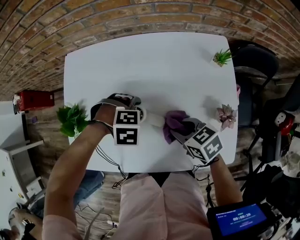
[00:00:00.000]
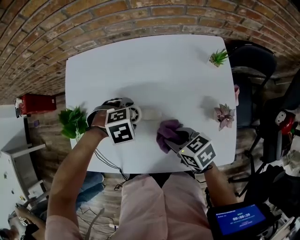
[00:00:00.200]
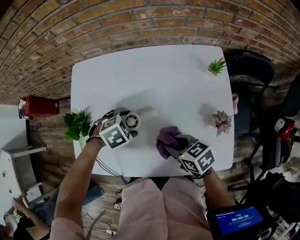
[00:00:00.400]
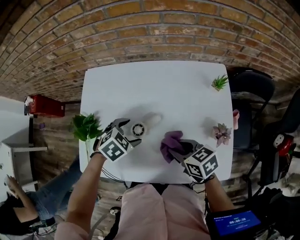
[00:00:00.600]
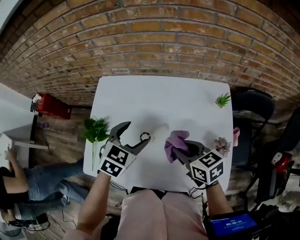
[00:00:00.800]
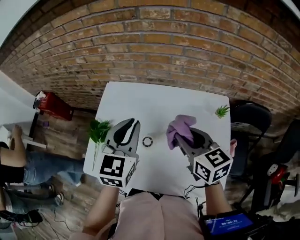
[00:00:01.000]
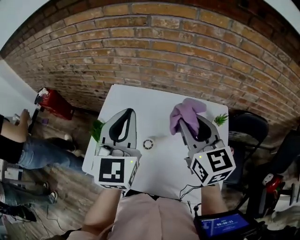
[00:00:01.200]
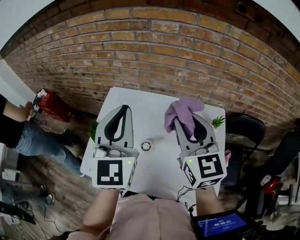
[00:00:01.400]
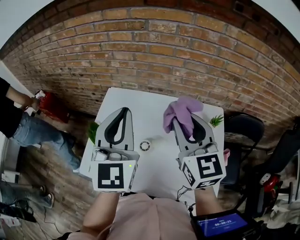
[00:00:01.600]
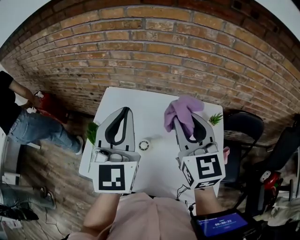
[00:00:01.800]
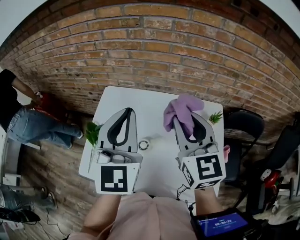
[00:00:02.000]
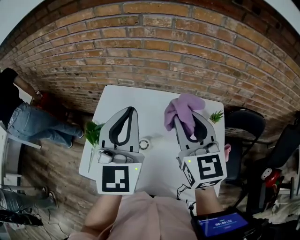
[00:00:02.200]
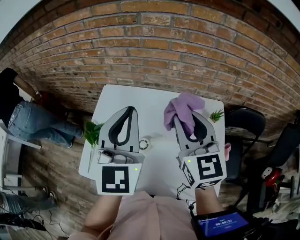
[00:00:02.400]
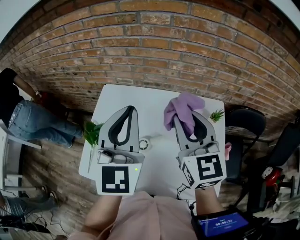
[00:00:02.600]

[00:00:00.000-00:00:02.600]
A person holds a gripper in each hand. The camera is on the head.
00:00:00.000 to 00:00:01.200: Both grippers travel together upward, approximately 35 cm. The right gripper points its fingers about 40 degrees further upward, while the left gripper points its fingers about 80 degrees further upward, and closes up.
00:00:01.200 to 00:00:02.600: The grippers stay close to where they were, moving slightly.

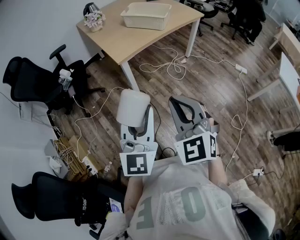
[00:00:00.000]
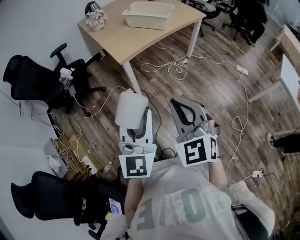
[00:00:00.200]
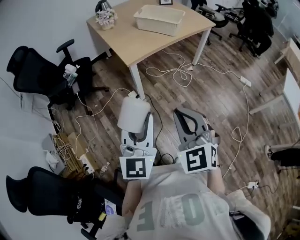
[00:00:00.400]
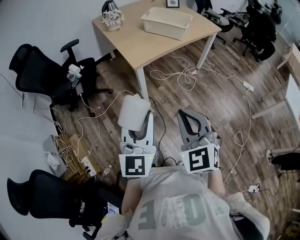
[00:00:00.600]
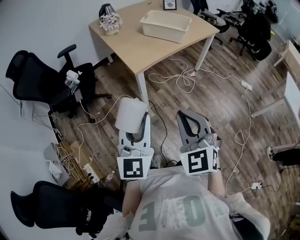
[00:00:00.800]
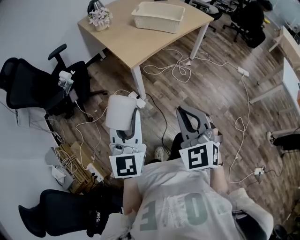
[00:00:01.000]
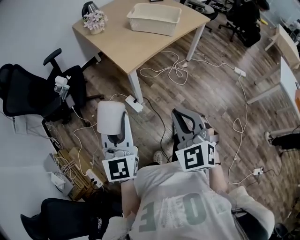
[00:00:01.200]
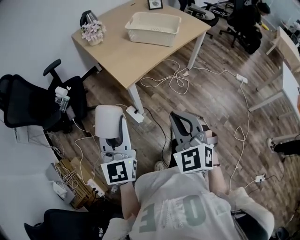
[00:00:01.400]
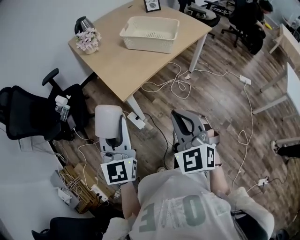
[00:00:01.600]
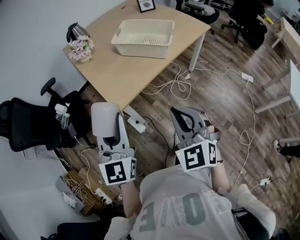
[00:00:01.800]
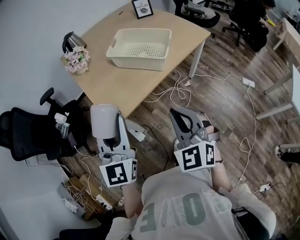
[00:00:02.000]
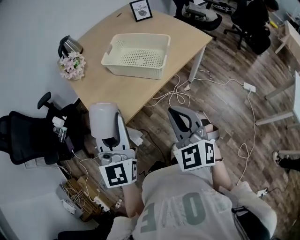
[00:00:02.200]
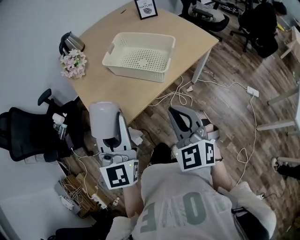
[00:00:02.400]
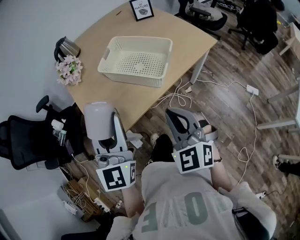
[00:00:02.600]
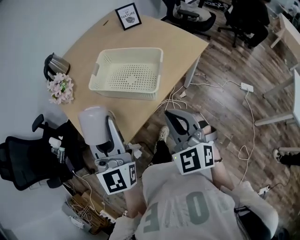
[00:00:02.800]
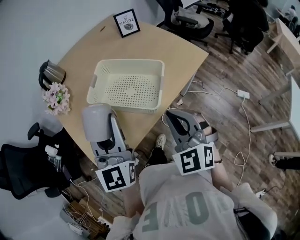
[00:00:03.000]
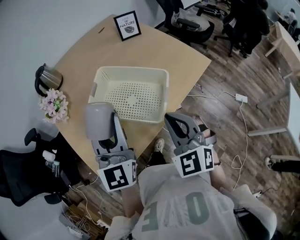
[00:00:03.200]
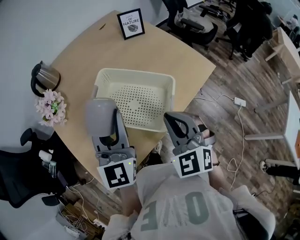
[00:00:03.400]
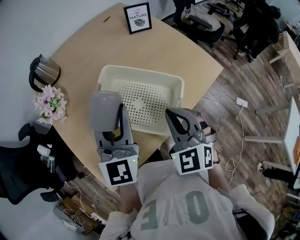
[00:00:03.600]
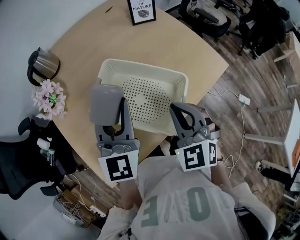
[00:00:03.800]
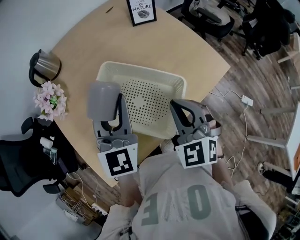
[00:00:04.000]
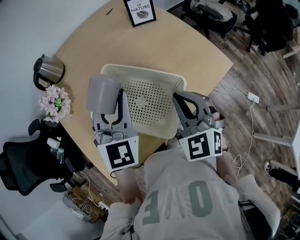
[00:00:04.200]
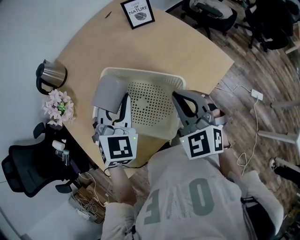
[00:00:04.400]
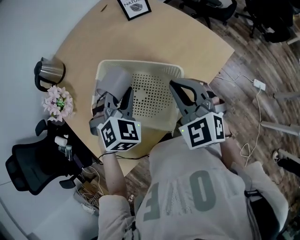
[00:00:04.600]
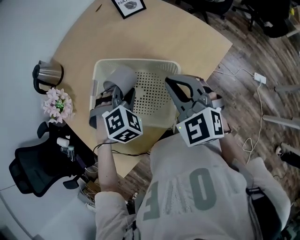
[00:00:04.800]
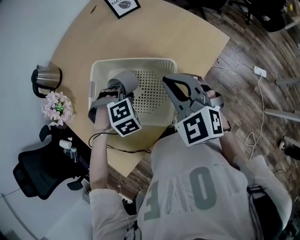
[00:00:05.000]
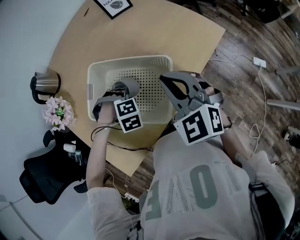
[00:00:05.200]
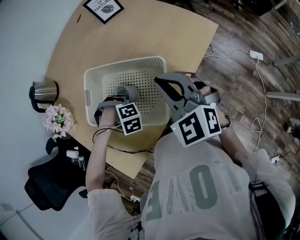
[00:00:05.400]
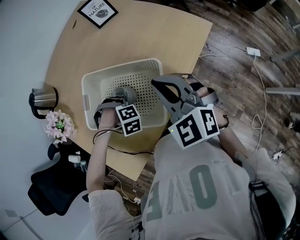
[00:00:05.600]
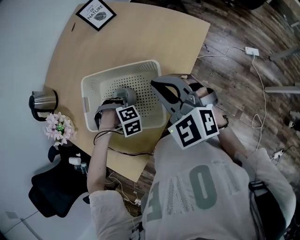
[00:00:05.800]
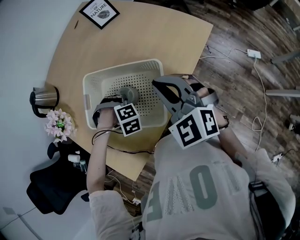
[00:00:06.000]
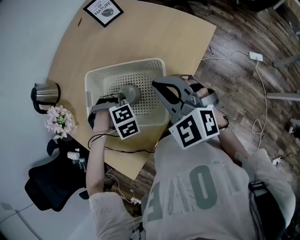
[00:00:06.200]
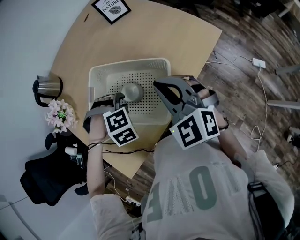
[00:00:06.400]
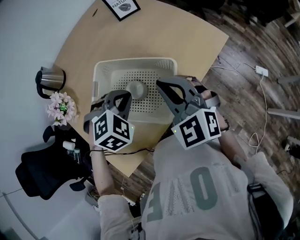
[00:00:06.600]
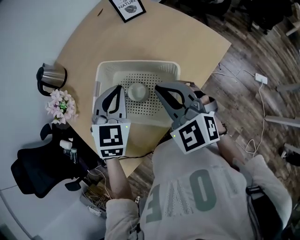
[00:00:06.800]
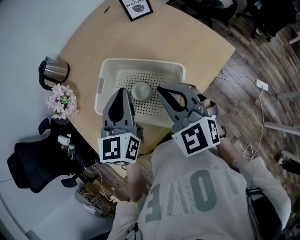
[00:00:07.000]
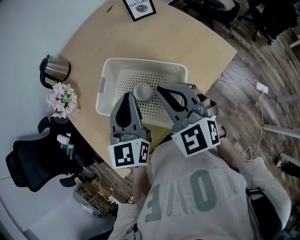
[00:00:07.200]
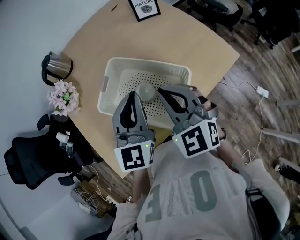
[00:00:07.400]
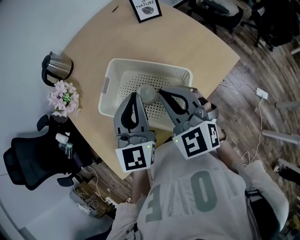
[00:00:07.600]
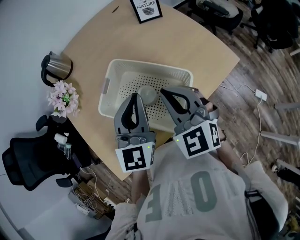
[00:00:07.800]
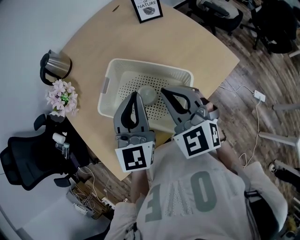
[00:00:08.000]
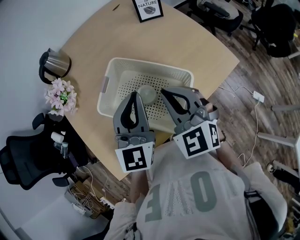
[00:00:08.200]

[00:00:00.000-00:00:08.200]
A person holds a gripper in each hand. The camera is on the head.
00:00:00.000 to 00:00:01.600: The left gripper travels forward and to the left by about 30 cm. The right gripper shifts approximately 25 cm forward.
00:00:01.600 to 00:00:03.200: The pair of grippers is taken forward, about 50 cm.
00:00:03.200 to 00:00:05.000: The right gripper is displaced forward by about 15 cm. The left gripper shifts roughly 25 cm downward and forward, and tilts its fingers about 70 degrees downward.
00:00:05.000 to 00:00:06.600: The left gripper is displaced upward by some 10 cm, and swivels about 20 degrees.
00:00:06.600 to 00:00:08.200: The right gripper shifts about 5 cm to the left. The left gripper is displaced upward by about 10 cm, and points its fingers approximately 60 degrees further upward.

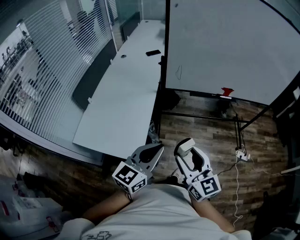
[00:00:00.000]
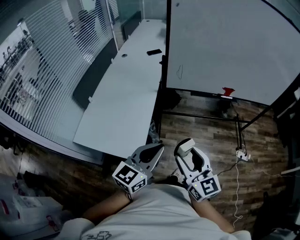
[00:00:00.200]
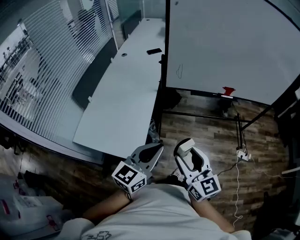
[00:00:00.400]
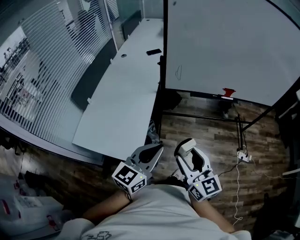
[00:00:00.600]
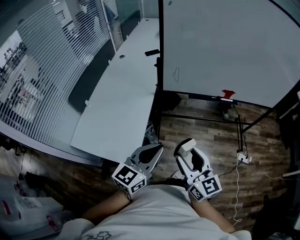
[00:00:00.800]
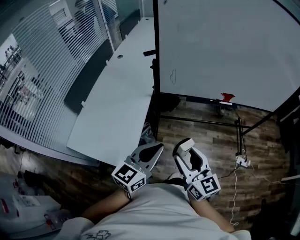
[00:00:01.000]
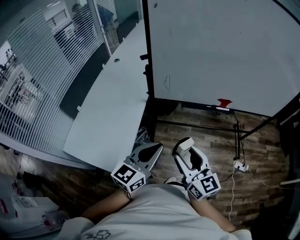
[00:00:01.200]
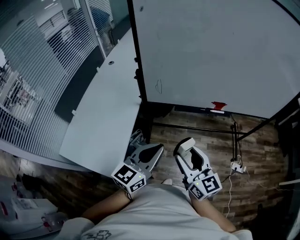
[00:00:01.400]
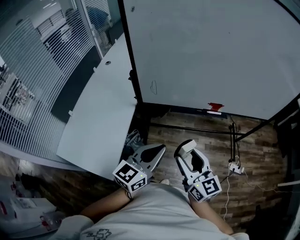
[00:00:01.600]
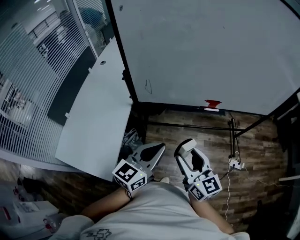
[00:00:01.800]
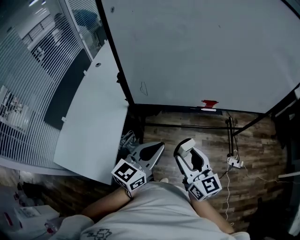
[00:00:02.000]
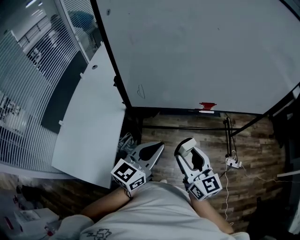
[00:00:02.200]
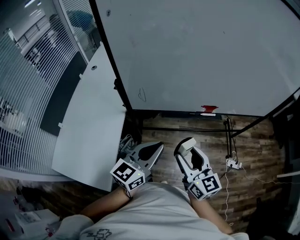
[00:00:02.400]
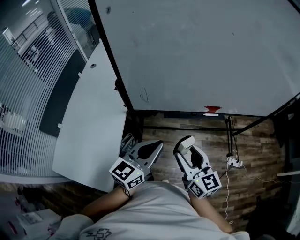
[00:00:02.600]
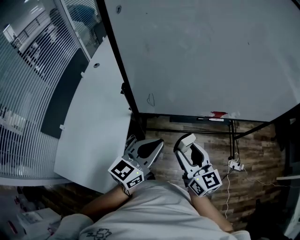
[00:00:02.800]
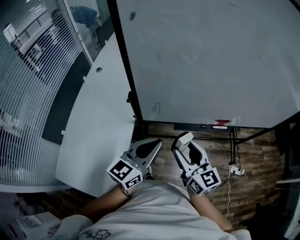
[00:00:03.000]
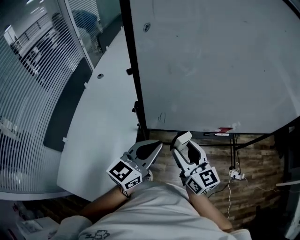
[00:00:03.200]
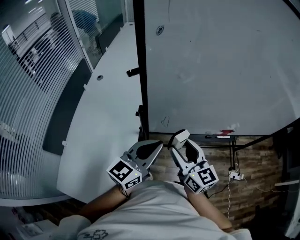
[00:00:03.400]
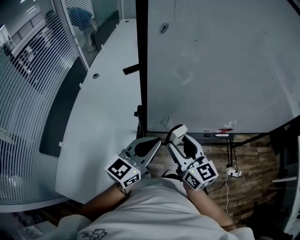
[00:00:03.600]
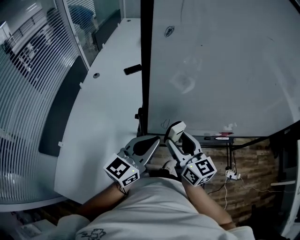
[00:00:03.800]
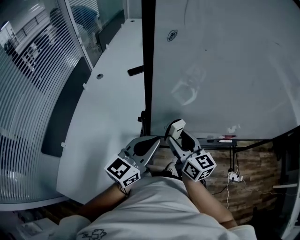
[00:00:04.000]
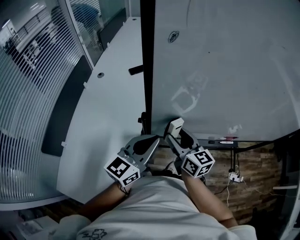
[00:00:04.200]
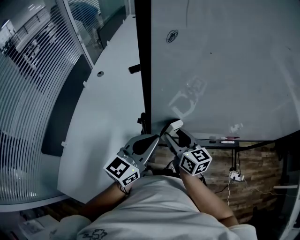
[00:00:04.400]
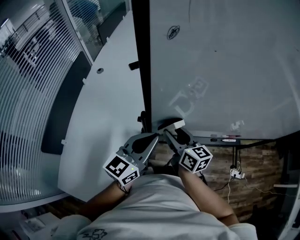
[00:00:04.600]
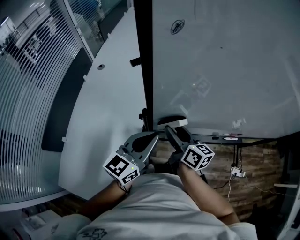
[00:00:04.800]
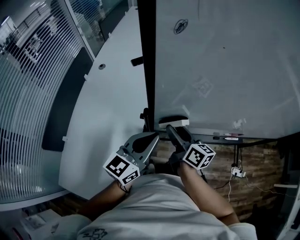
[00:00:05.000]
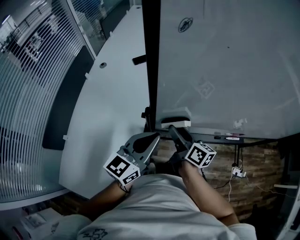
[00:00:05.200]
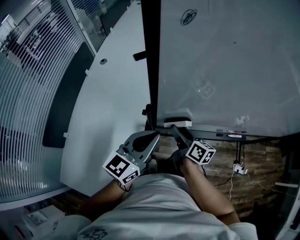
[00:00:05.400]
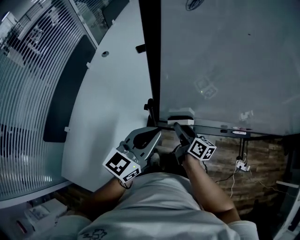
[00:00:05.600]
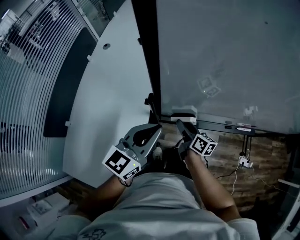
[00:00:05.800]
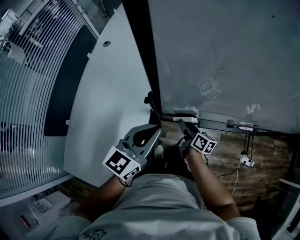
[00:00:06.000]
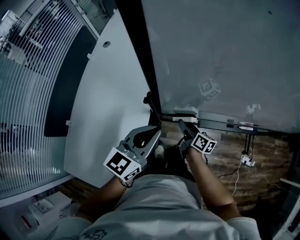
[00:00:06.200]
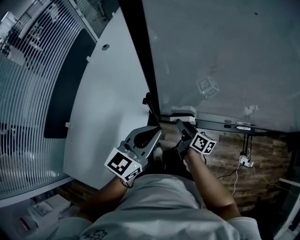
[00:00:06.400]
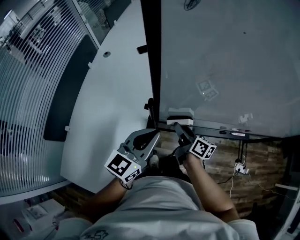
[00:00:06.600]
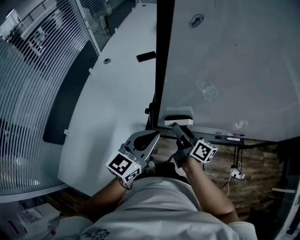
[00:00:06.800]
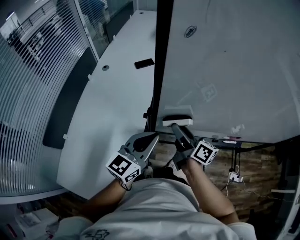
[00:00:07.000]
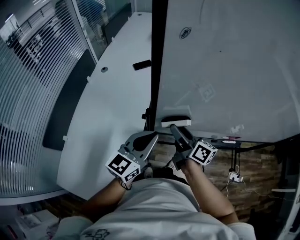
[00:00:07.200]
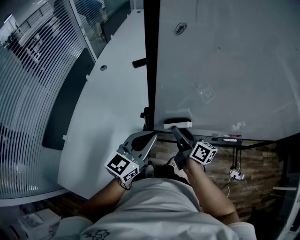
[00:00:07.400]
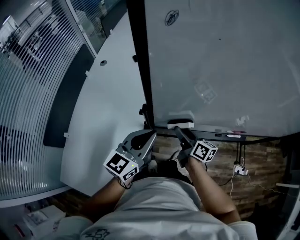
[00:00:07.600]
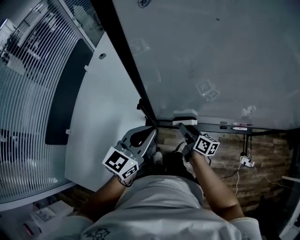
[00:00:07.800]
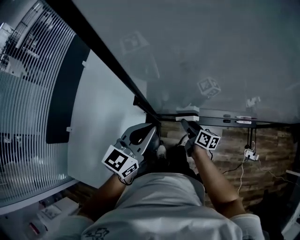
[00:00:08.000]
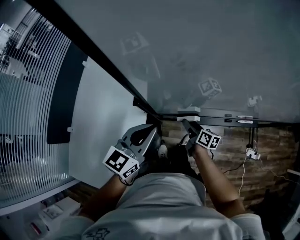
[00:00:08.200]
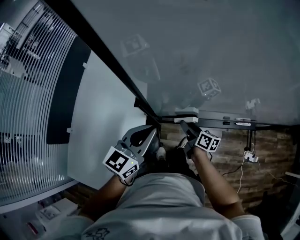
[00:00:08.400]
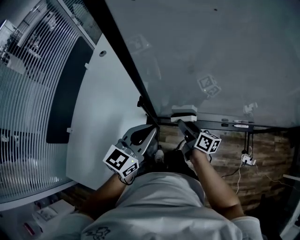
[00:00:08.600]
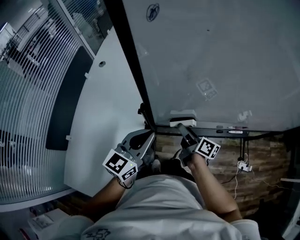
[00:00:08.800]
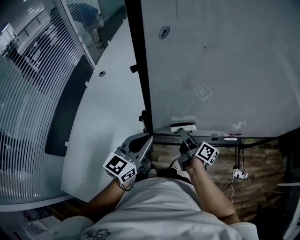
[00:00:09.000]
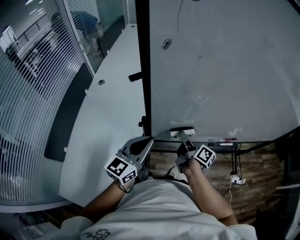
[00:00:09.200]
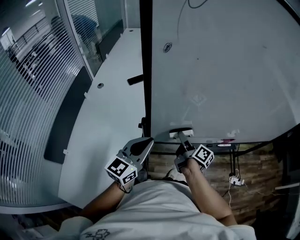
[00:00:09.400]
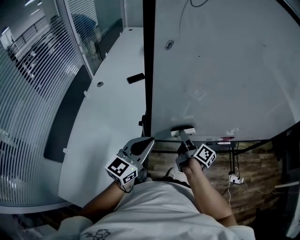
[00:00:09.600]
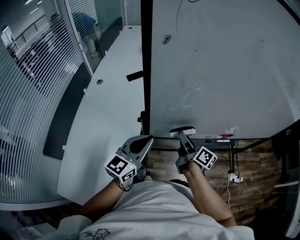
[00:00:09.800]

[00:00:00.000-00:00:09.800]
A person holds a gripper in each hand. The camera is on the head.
00:00:00.000 to 00:00:01.400: Both grippers travel together forward and to the right, about 20 cm.
00:00:01.400 to 00:00:02.800: Both grippers move forward, roughly 15 cm.
00:00:02.800 to 00:00:04.200: The left gripper goes about 20 cm to the left and forward; the right gripper heads forward and to the left, covering some 25 cm.
00:00:04.200 to 00:00:05.600: The right gripper is displaced downward by some 15 cm, and turns by approximately 30 degrees.
00:00:05.600 to 00:00:07.000: The right gripper travels upward by roughly 15 cm.
00:00:07.000 to 00:00:08.400: The left gripper shifts about 5 cm downward. Meanwhile the right gripper shifts roughly 20 cm downward.
00:00:08.400 to 00:00:09.800: The left gripper heads upward, covering about 5 cm, while the right gripper heads upward, covering about 20 cm, and turns by approximately 20 degrees.

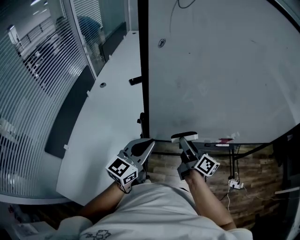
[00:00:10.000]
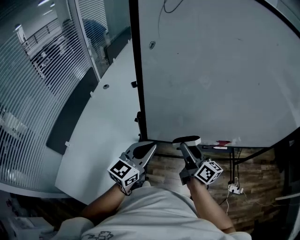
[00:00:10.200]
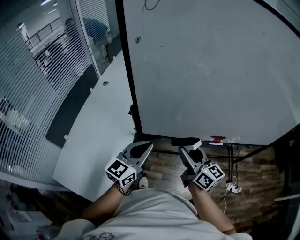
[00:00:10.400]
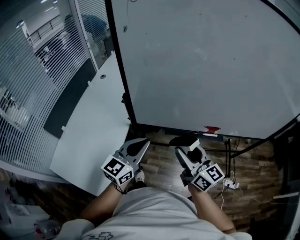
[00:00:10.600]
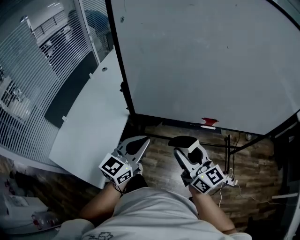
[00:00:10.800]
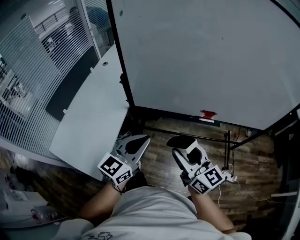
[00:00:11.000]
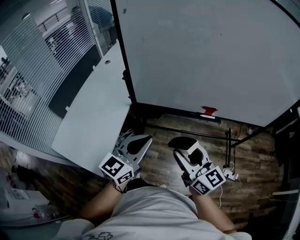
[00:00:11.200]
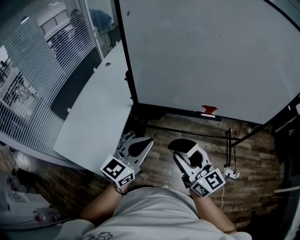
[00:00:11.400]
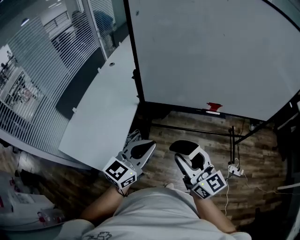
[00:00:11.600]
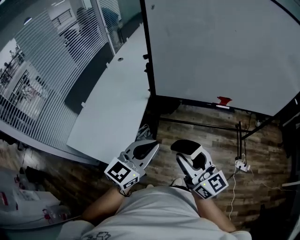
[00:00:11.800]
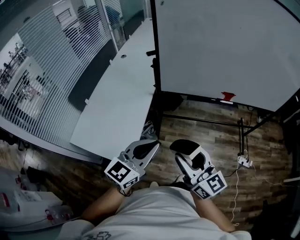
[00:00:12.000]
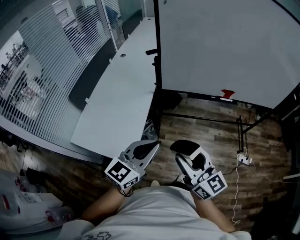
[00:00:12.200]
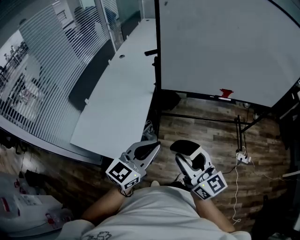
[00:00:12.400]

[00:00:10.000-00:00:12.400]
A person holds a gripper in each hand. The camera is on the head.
00:00:10.000 to 00:00:11.200: The grippers both shift backward and to the right by approximately 30 cm. The right gripper twists roughly 40 degrees counterclockwise, seen from behind.
00:00:11.200 to 00:00:12.400: The left gripper shifts some 25 cm backward and to the left. Meanwhile the right gripper shifts about 25 cm to the left and backward.
